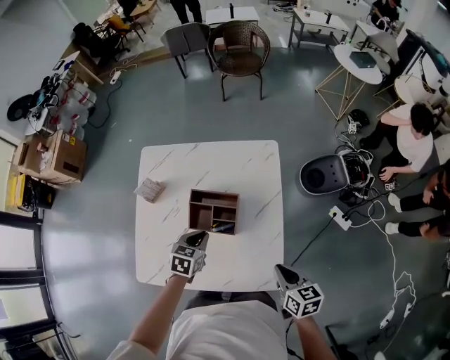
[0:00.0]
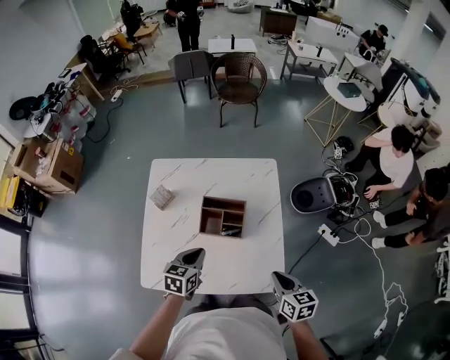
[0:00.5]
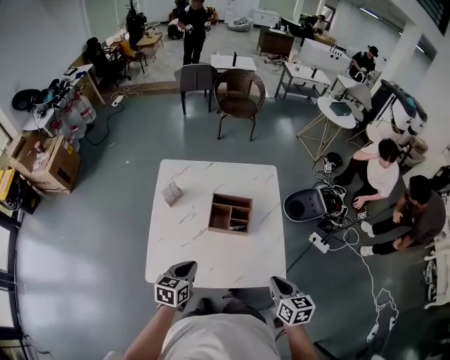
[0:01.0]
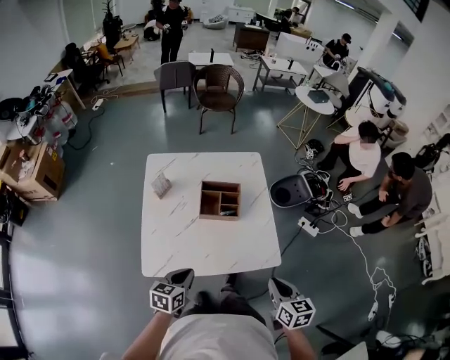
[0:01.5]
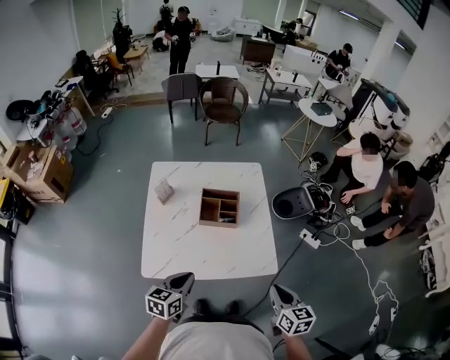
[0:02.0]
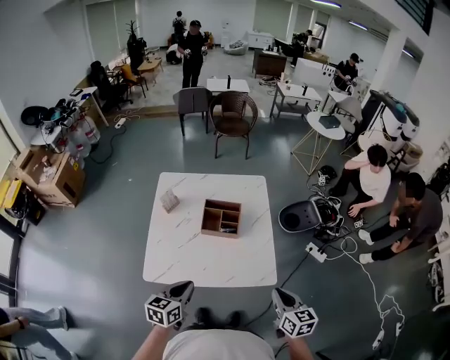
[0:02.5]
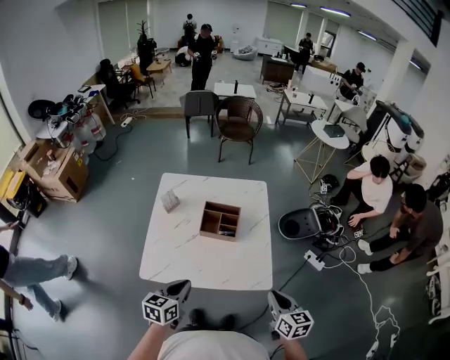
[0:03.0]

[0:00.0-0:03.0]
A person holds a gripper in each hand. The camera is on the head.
0:00.0 to 0:01.5: The left gripper shifts approximately 30 cm backward and to the left; the right gripper goes about 25 cm backward, upward and to the left.
0:01.5 to 0:03.0: The left gripper is displaced upward and to the right by some 10 cm; the right gripper is displaced to the right by some 5 cm.

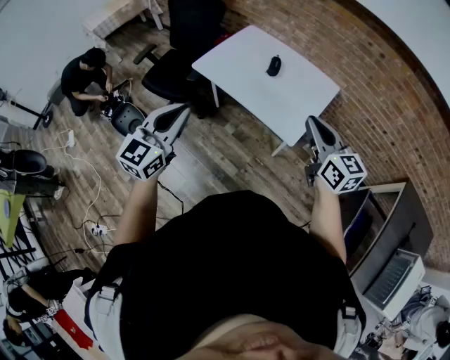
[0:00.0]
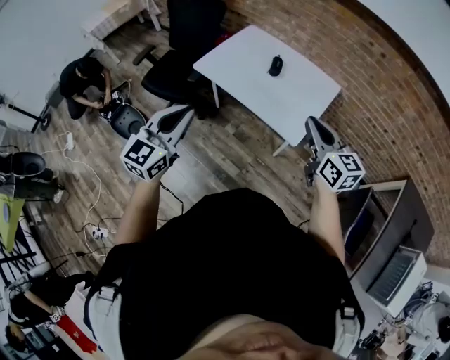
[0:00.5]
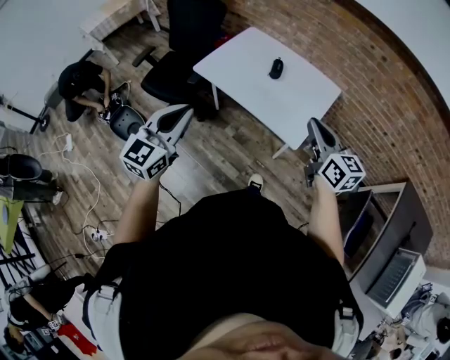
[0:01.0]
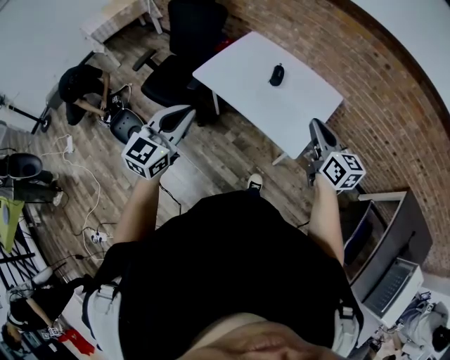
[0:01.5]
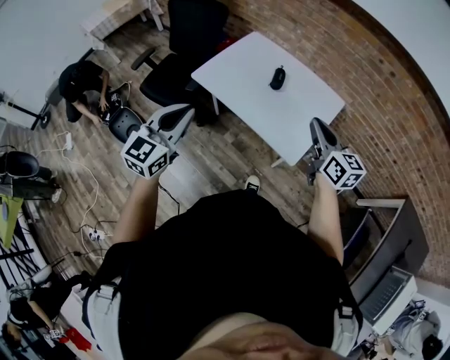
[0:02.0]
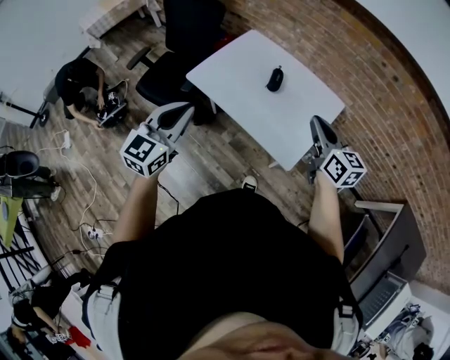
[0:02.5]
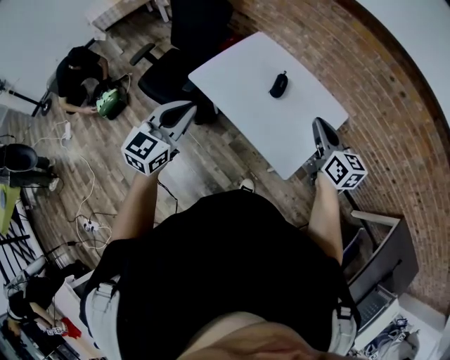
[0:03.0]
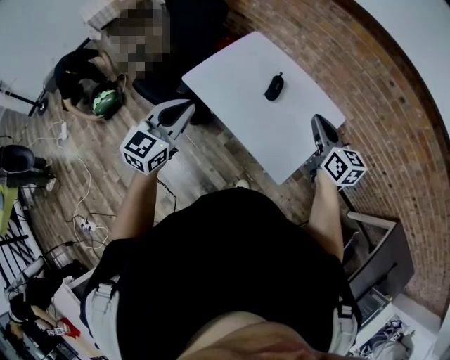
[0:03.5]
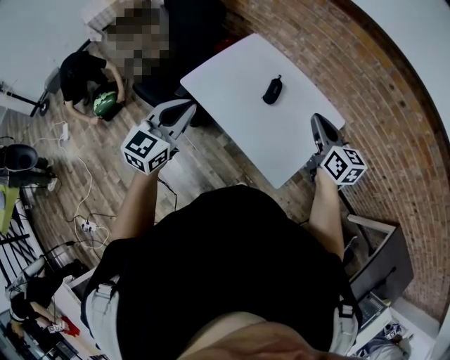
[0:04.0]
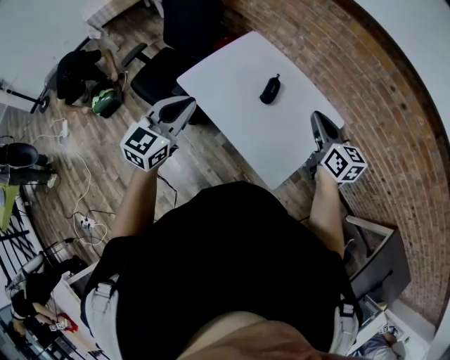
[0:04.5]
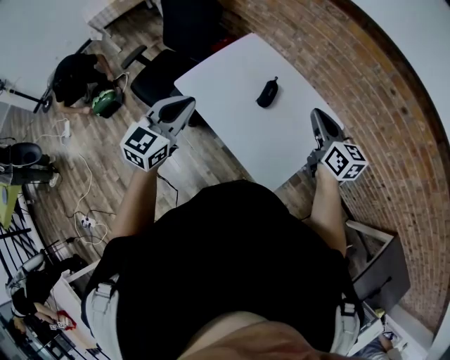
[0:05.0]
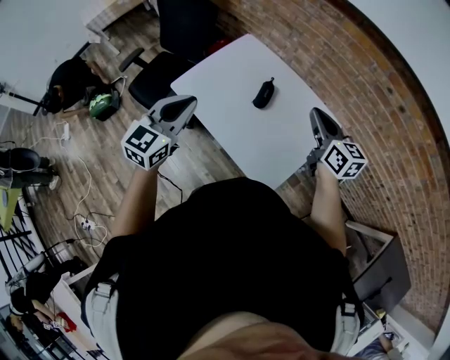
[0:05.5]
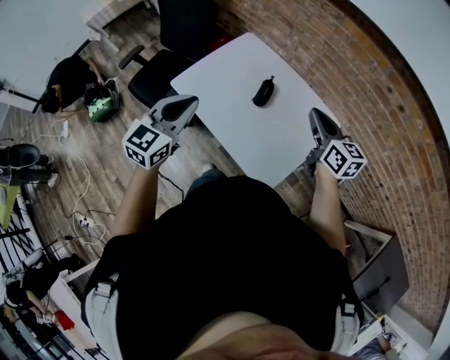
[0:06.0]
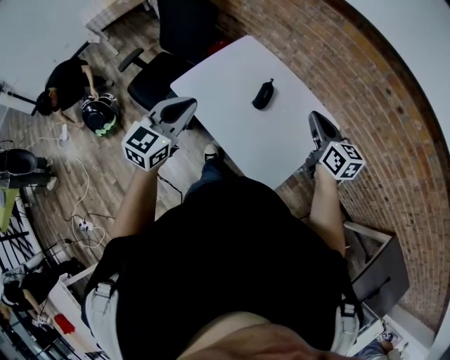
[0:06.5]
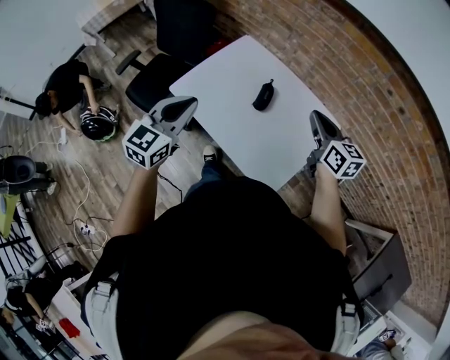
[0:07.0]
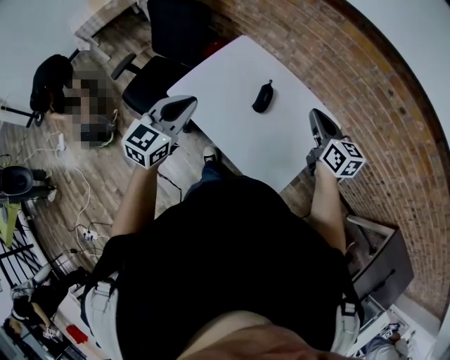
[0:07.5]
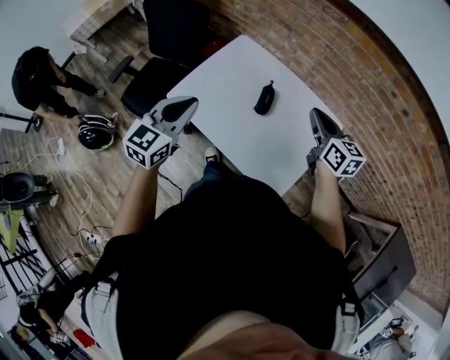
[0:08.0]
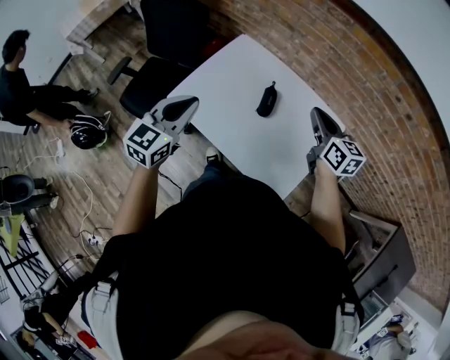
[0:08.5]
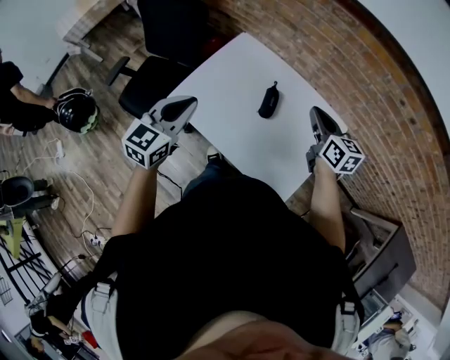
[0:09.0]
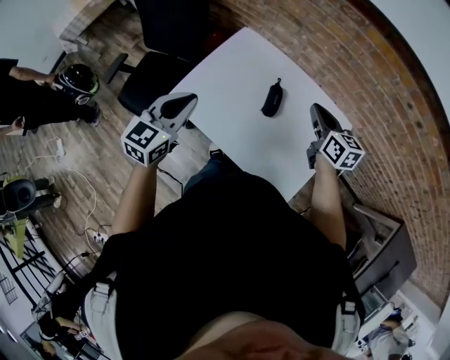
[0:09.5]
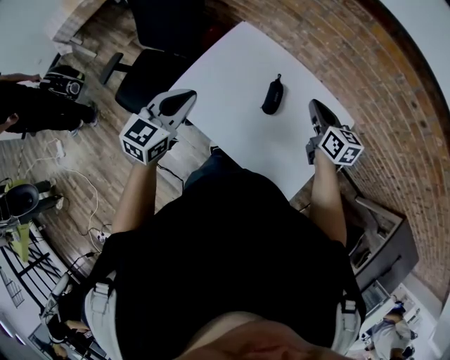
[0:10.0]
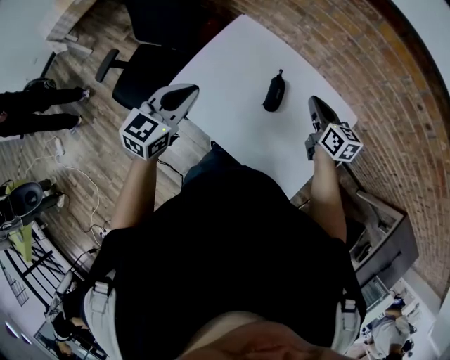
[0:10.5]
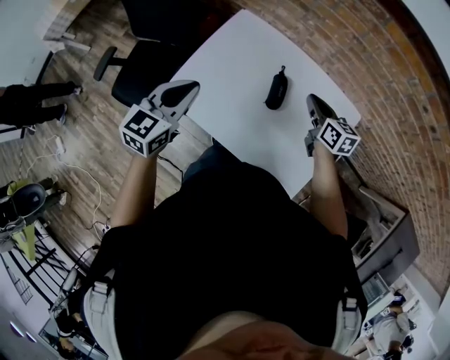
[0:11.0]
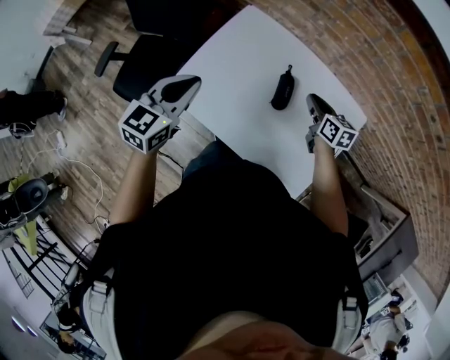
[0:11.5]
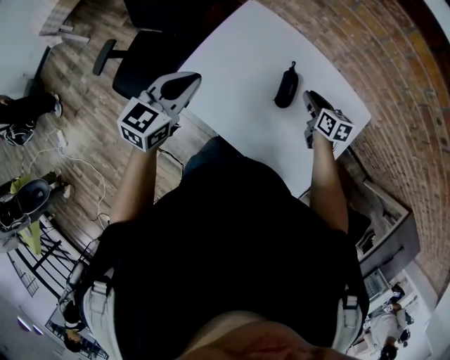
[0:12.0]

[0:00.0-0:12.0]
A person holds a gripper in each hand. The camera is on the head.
0:00.0 to 0:02.0: Both grippers travel together forward, approximately 10 cm.
0:02.0 to 0:04.0: The grippers both shift forward by approximately 15 cm.
0:04.0 to 0:06.0: The right gripper is displaced forward and to the right by roughly 10 cm, while the left gripper is displaced to the right by approximately 10 cm.
0:06.0 to 0:08.0: Both grippers travel together forward, approximately 5 cm.
0:08.0 to 0:10.0: Both grippers move forward and downward, roughly 10 cm.
0:10.0 to 0:12.0: The right gripper travels downward by roughly 15 cm. The left gripper shifts approximately 10 cm forward and downward.

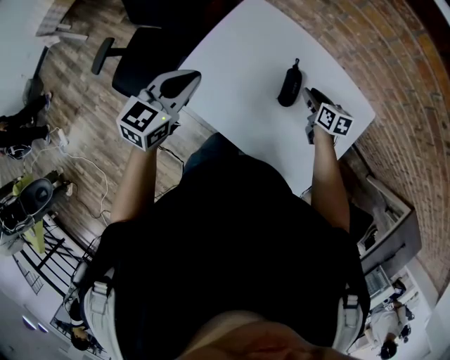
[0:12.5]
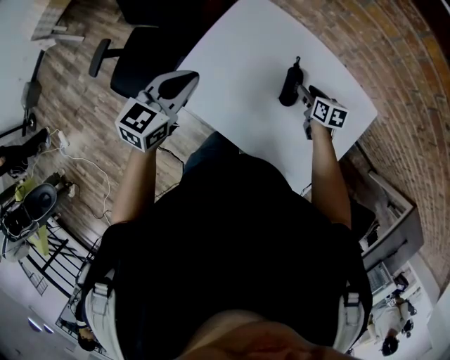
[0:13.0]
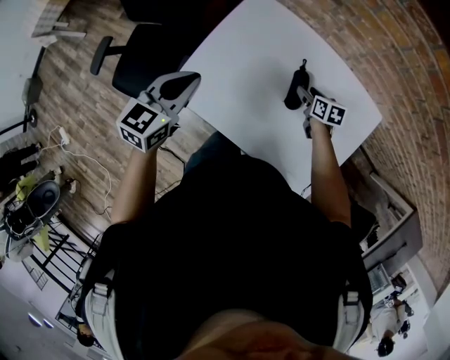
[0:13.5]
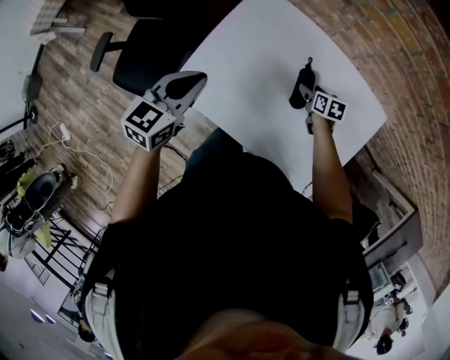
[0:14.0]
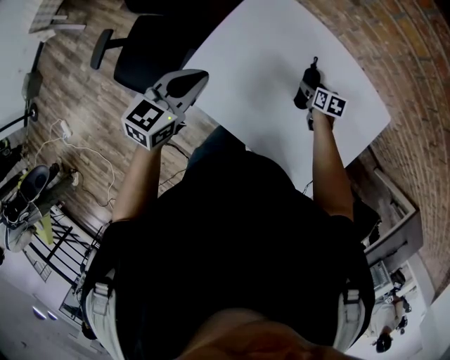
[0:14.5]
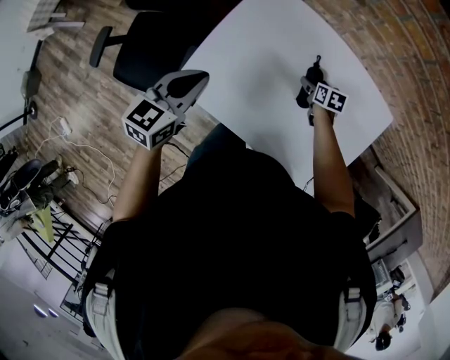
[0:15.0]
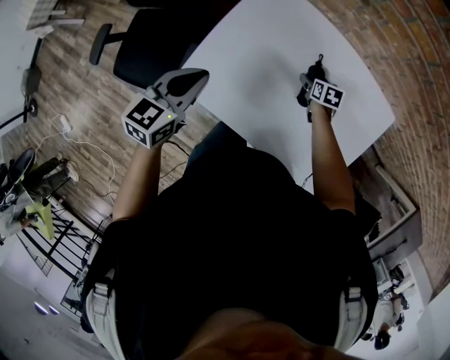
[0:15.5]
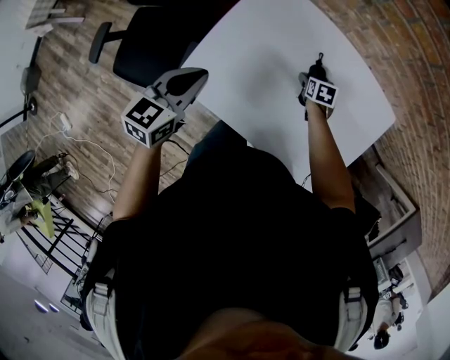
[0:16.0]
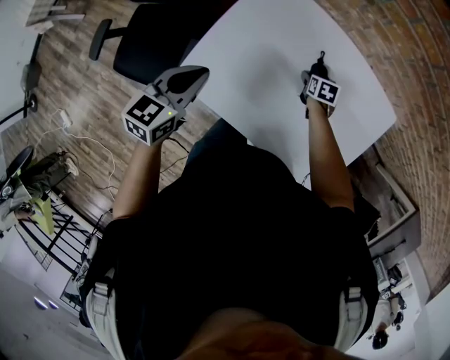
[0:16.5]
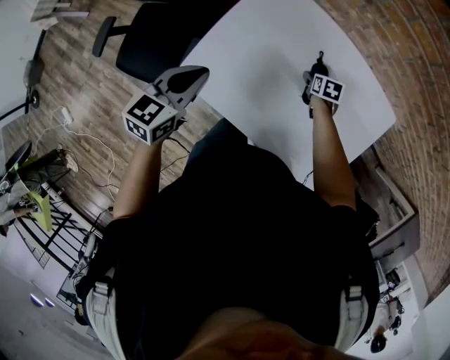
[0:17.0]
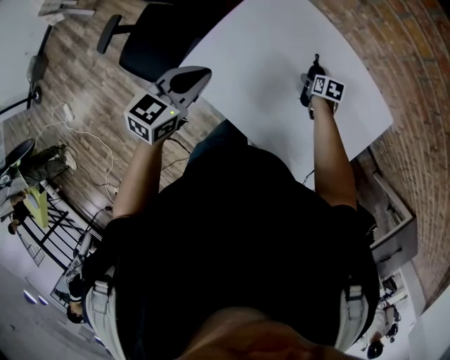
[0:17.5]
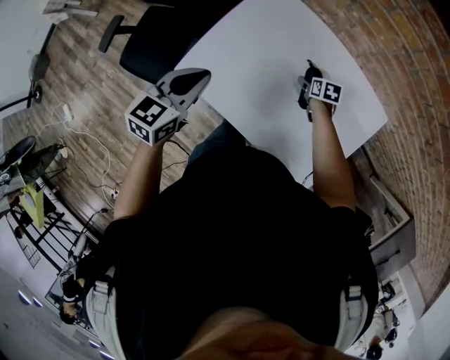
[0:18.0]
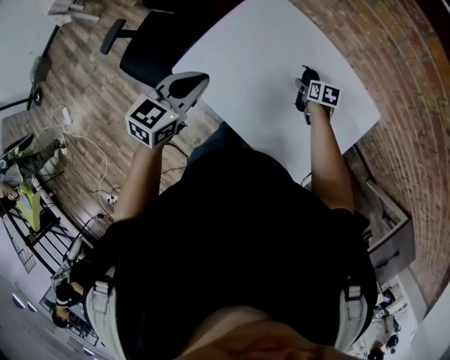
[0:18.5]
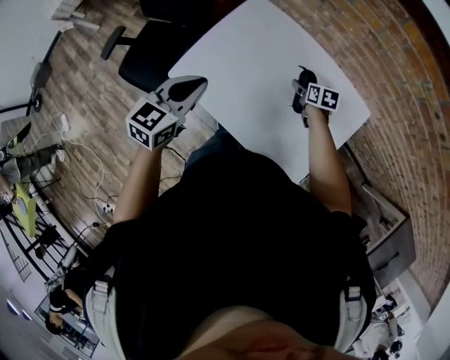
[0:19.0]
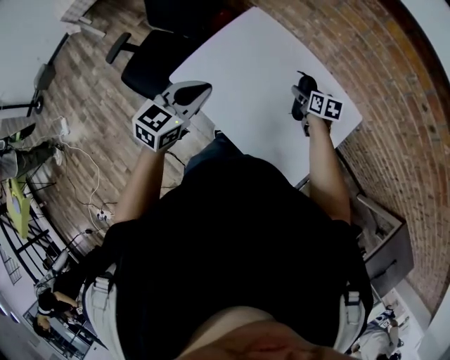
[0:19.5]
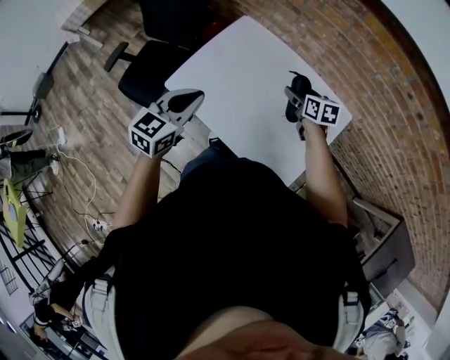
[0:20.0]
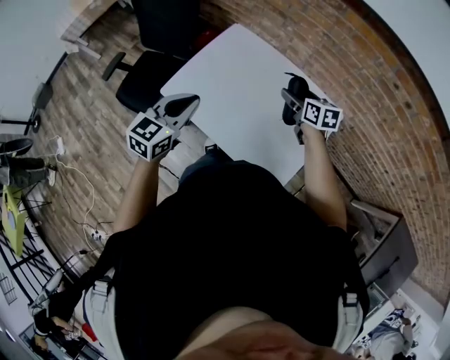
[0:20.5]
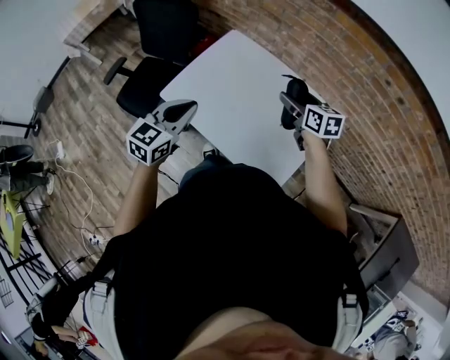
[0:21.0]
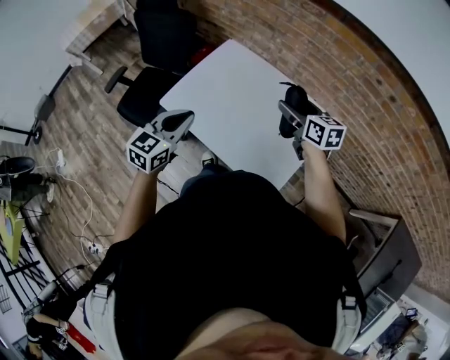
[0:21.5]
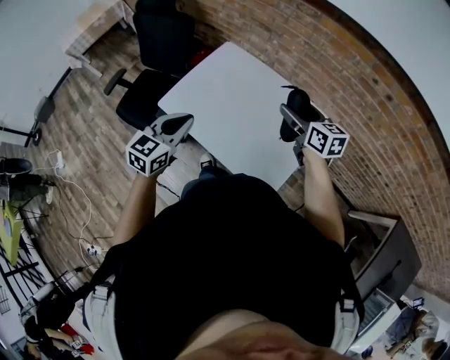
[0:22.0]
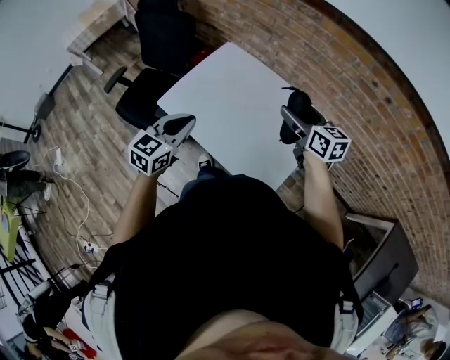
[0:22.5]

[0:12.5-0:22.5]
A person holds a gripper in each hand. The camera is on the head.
0:12.5 to 0:14.5: The left gripper heads downward, covering roughly 5 cm. Meanwhile the right gripper heads downward, covering roughly 15 cm, and opens.
0:14.5 to 0:16.5: The grippers move only a little.
0:16.5 to 0:18.5: The right gripper is displaced upward by approximately 5 cm. Meanwhile the left gripper goes about 10 cm backward, upward and to the right.
0:18.5 to 0:20.5: The left gripper shifts about 15 cm backward, upward and to the right. The right gripper heads upward, covering some 25 cm, and swivels approximately 30 degrees.
0:20.5 to 0:22.5: The right gripper travels upward and backward by approximately 15 cm. The left gripper travels backward by about 5 cm.

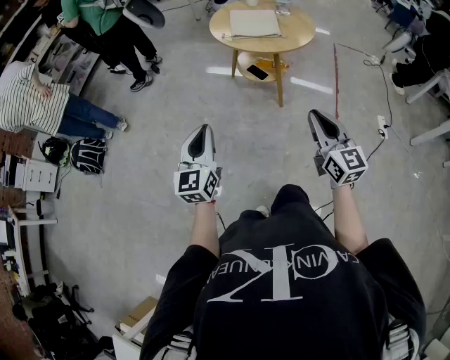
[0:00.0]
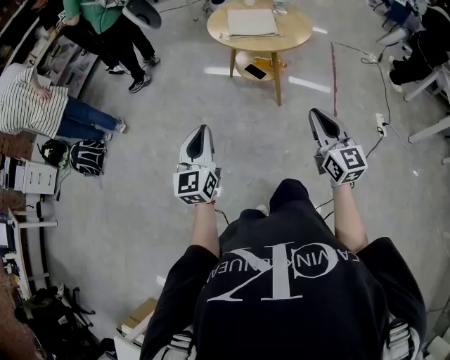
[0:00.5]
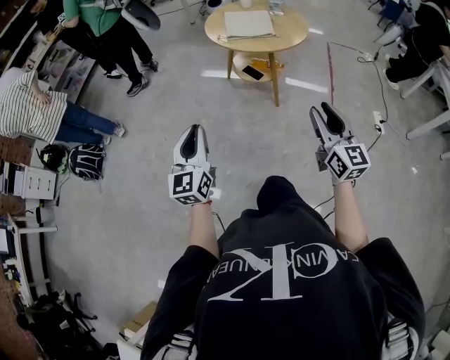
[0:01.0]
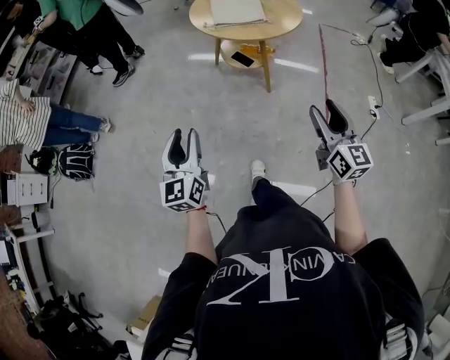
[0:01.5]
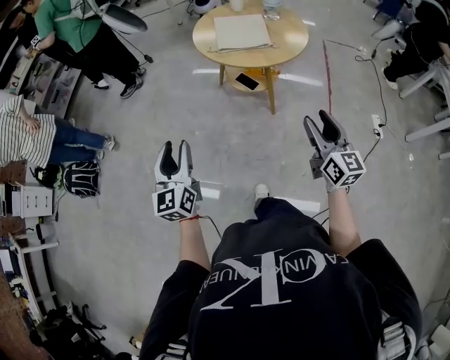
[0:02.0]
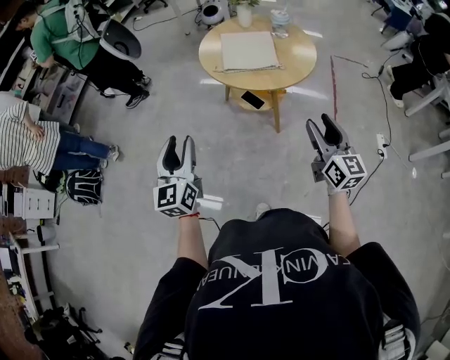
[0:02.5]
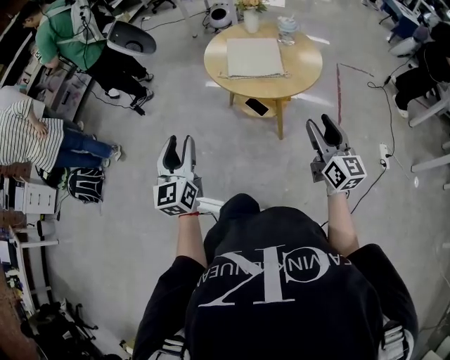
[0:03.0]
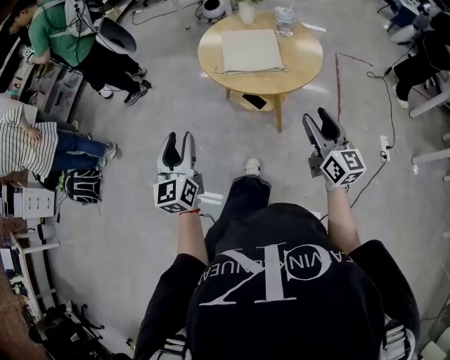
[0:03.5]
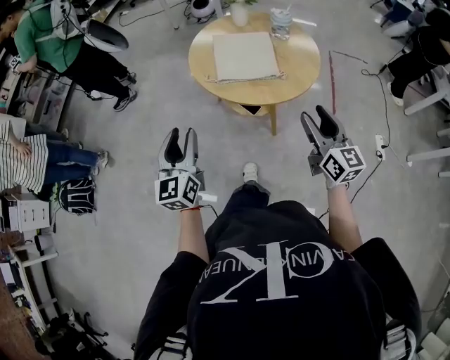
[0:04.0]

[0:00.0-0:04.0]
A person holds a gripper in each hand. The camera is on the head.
0:00.0 to 0:02.0: The right gripper goes about 10 cm forward, and opens up. The left gripper goes about 10 cm forward and to the left, and opens up.
0:02.0 to 0:04.0: The grippers both shift forward by some 20 cm.
